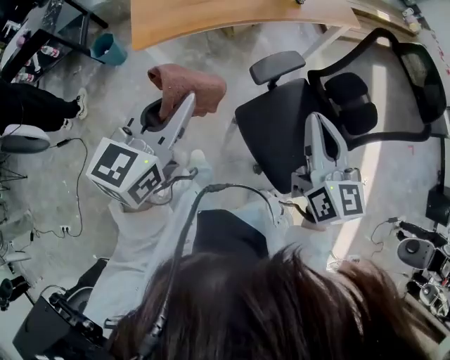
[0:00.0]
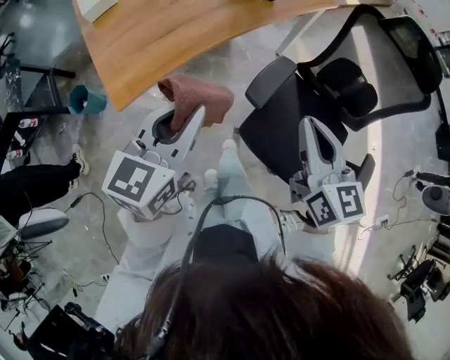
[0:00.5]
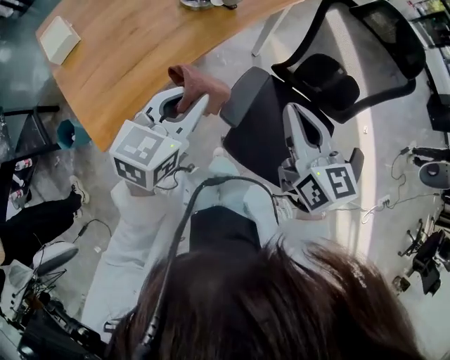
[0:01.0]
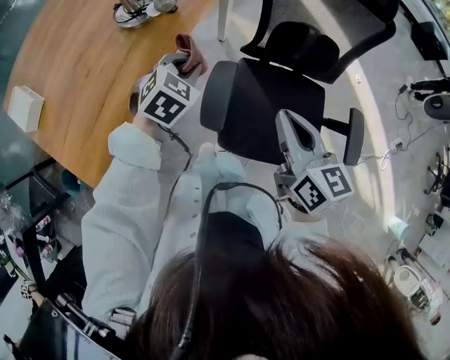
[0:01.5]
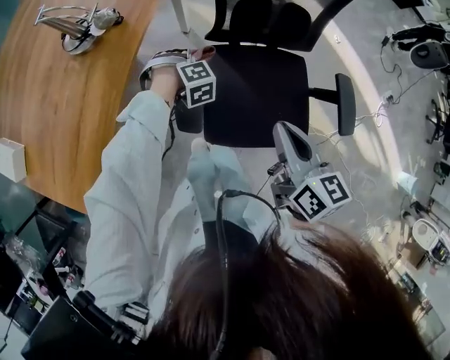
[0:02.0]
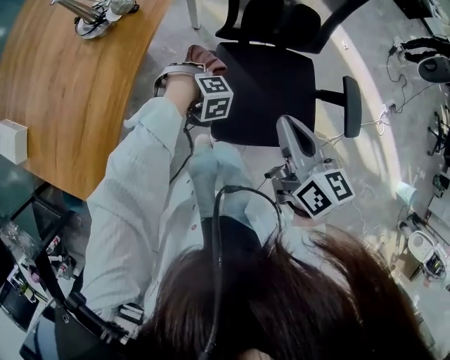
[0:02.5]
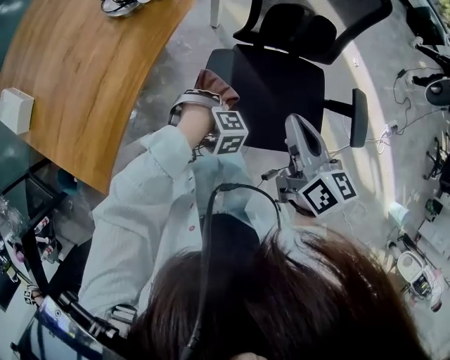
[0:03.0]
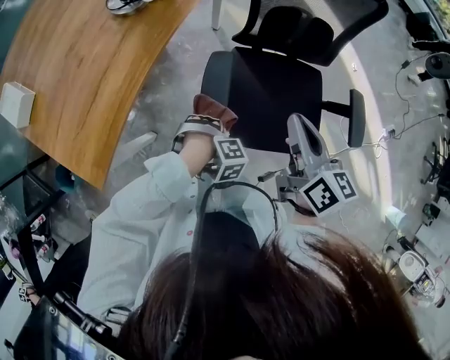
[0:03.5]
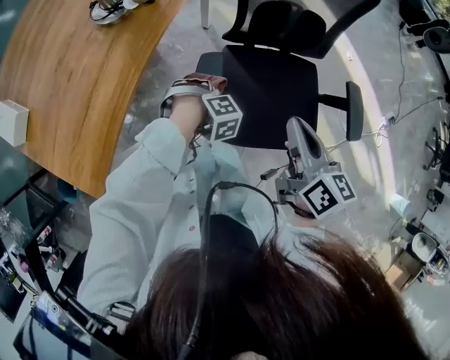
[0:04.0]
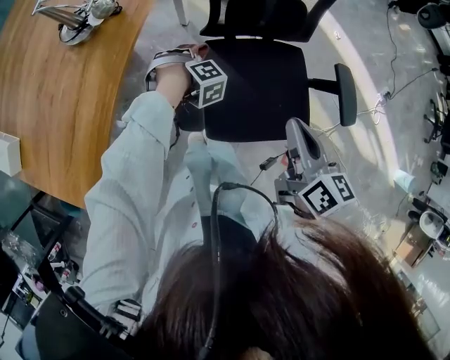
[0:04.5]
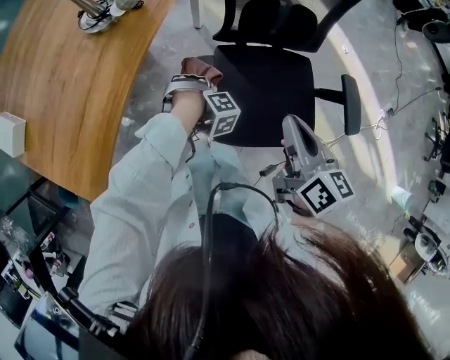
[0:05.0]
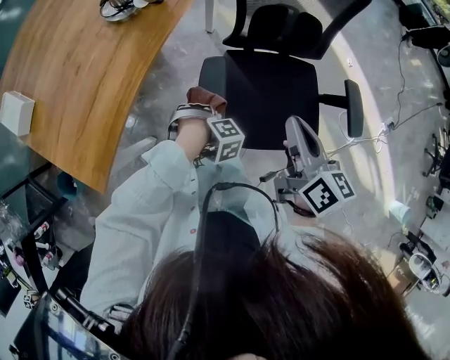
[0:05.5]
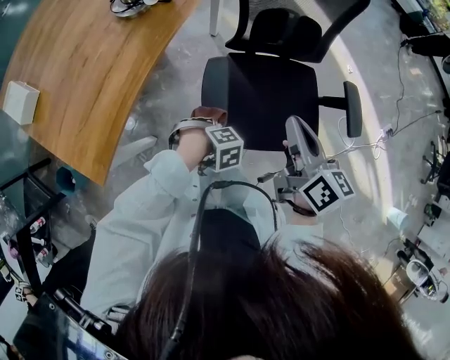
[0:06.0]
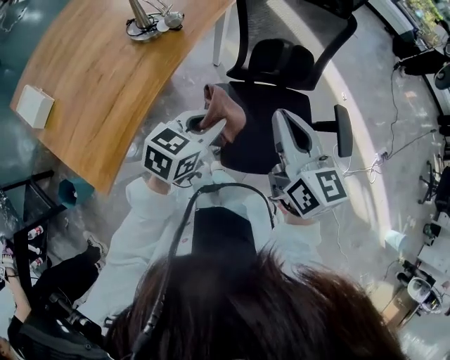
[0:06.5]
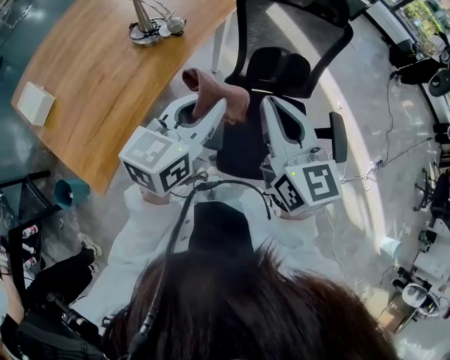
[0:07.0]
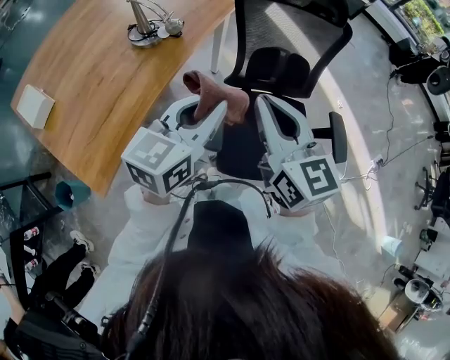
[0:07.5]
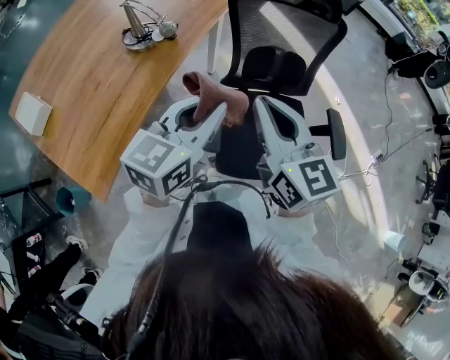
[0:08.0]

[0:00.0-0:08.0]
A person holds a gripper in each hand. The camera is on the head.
0:00.0 to 0:02.0: The right gripper moves roughly 20 cm, and swivels approximately 50 degrees; the left gripper moves some 60 cm, and rotates around the line of its fingers by about 100 degrees, clockwise from behind.
0:04.0 to 0:06.0: The left gripper ends up roughly 15 cm from where it was.
0:06.0 to 0:08.0: The left gripper moves upward, roughly 35 cm, and tips its fingers upward by about 70 degrees. Meanwhile the right gripper travels upward by roughly 15 cm, and turns by roughly 30 degrees.

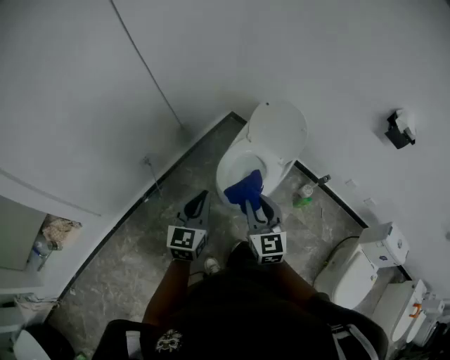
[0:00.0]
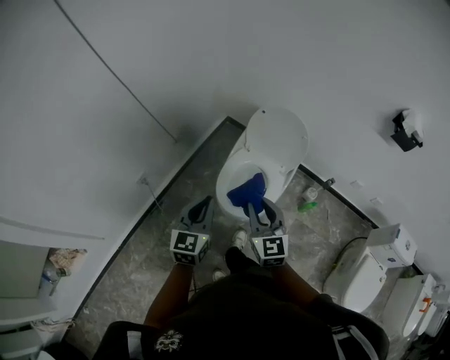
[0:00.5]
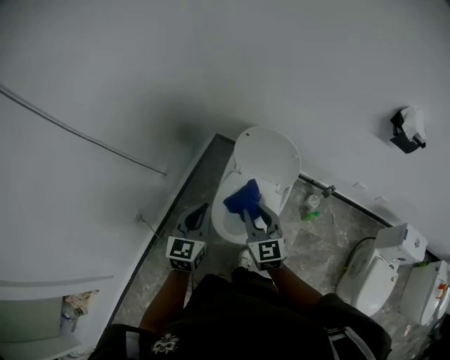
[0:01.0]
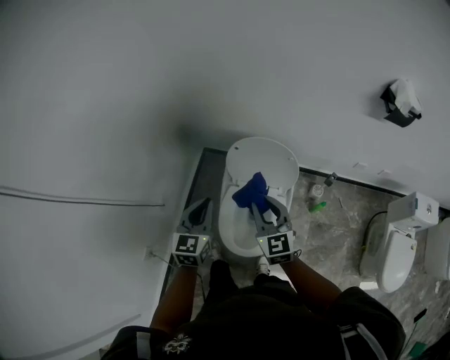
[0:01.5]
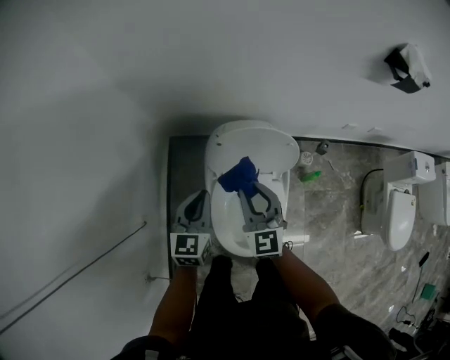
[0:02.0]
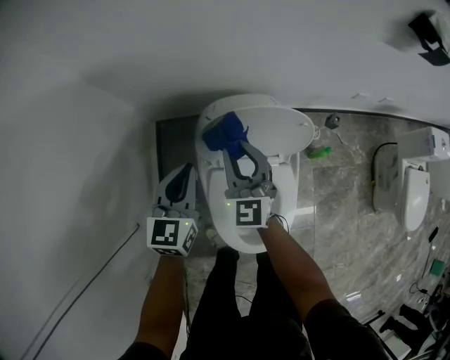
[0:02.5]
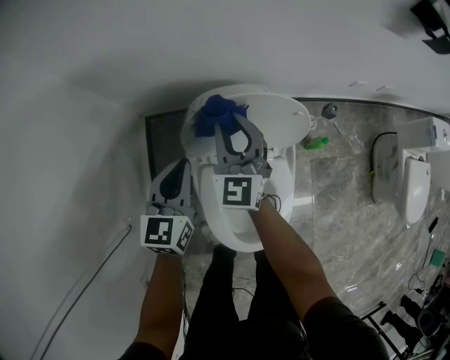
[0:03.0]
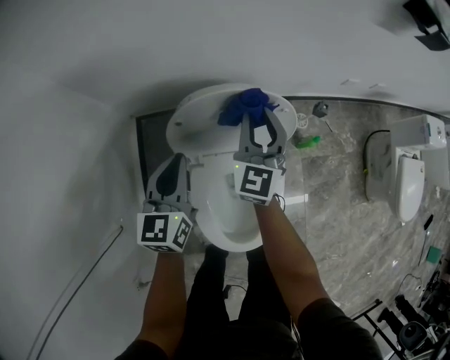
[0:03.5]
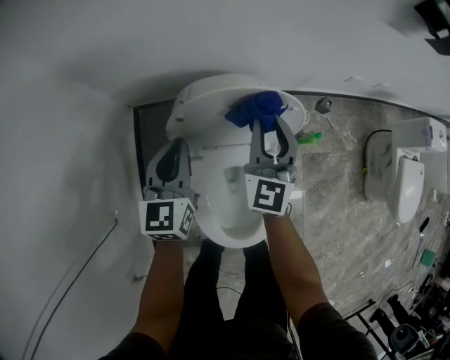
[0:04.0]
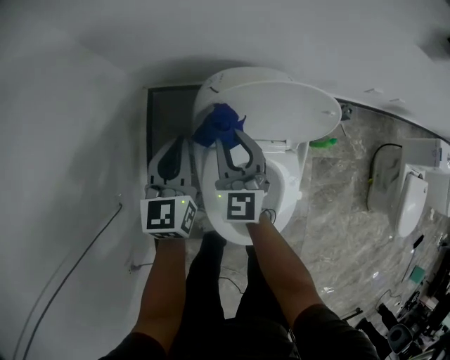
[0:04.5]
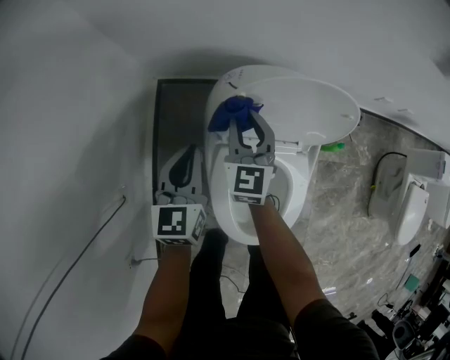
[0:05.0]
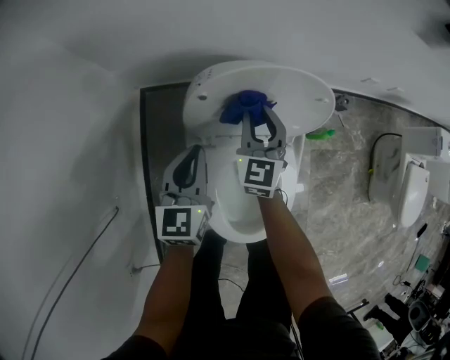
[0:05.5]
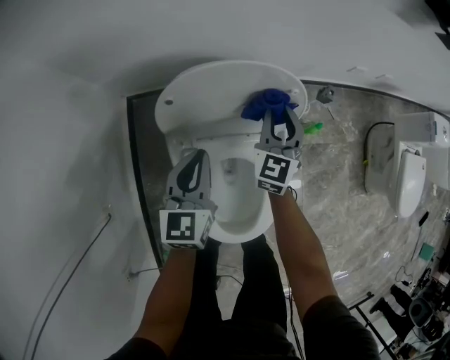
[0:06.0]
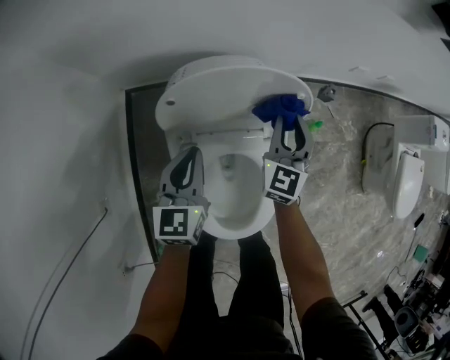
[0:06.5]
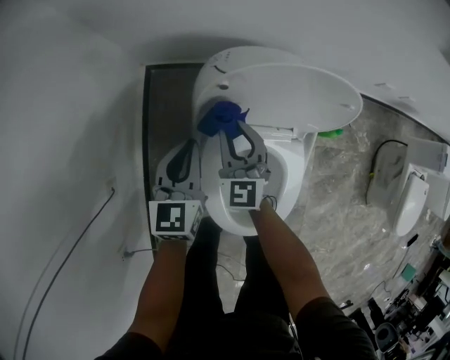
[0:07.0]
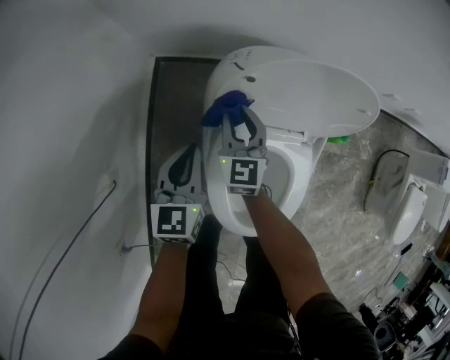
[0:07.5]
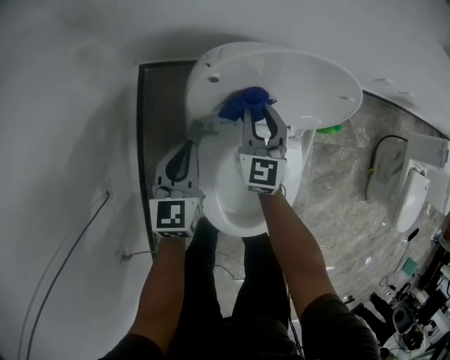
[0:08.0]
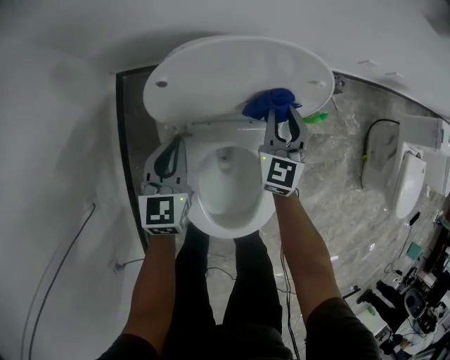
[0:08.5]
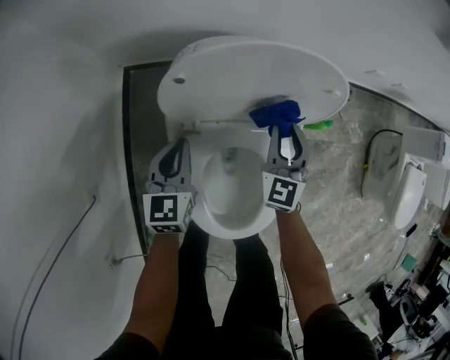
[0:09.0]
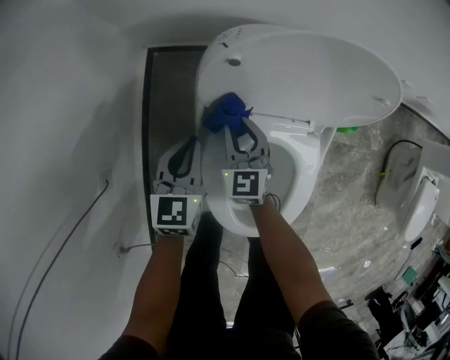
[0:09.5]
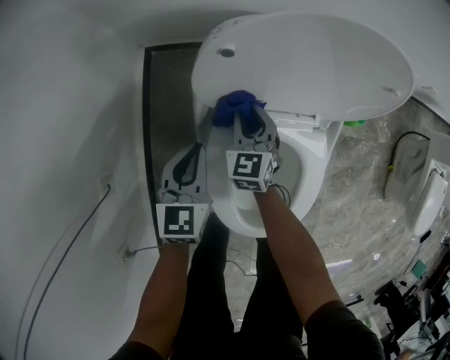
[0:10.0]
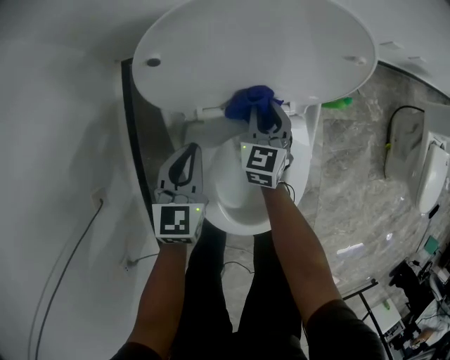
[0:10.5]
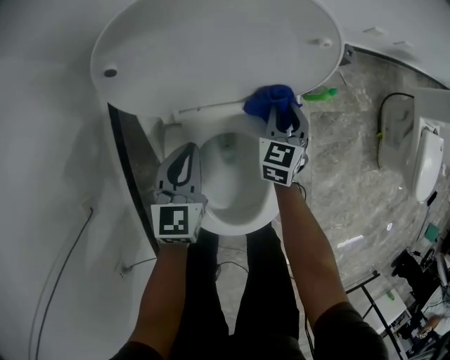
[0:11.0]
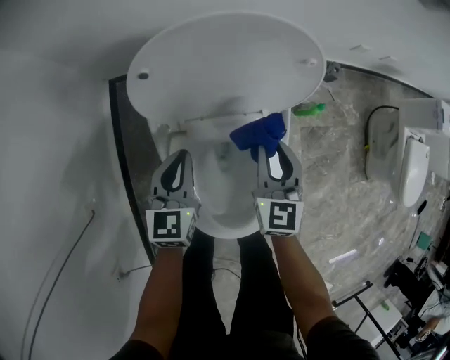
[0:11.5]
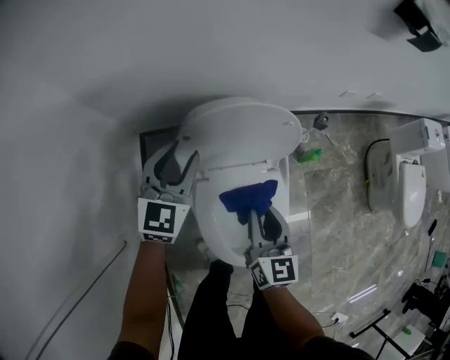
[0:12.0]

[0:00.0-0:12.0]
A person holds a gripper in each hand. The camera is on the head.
0:00.0 to 0:02.0: Both grippers are carried about 40 cm. The right gripper rotates roughly 30 degrees. The left gripper turns by some 30 degrees.
0:02.0 to 0:04.0: The right gripper travels forward, to the right and downward by some 20 cm, and changes its angle by about 30 degrees. Meanwhile the left gripper shifts about 15 cm forward and downward.
0:04.0 to 0:06.0: The left gripper goes about 5 cm to the right; the right gripper shifts approximately 10 cm downward, and goes to the left and returns, about 15 cm each way.
0:06.0 to 0:08.0: The grippers both shift to the left and downward by roughly 15 cm.
0:08.0 to 0:10.0: The left gripper is displaced downward by some 5 cm, while the right gripper moves downward, about 10 cm, and moves approximately 15 cm to the right and comes back.
0:10.0 to 0:12.0: The left gripper shifts some 25 cm upward and forward, rotates approximately 30 degrees, and opens up, while the right gripper goes some 30 cm upward, to the right and backward, and turns by approximately 40 degrees.

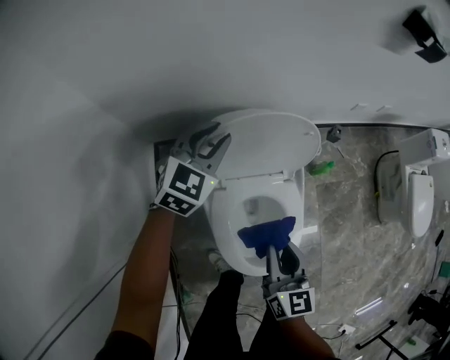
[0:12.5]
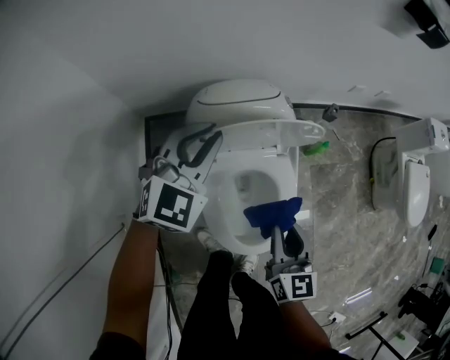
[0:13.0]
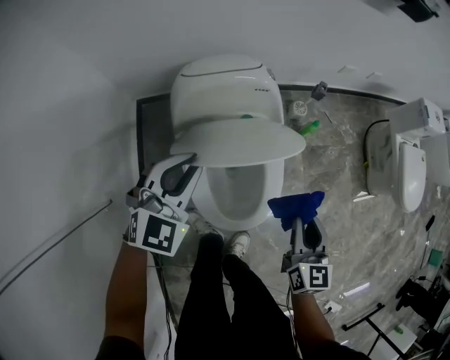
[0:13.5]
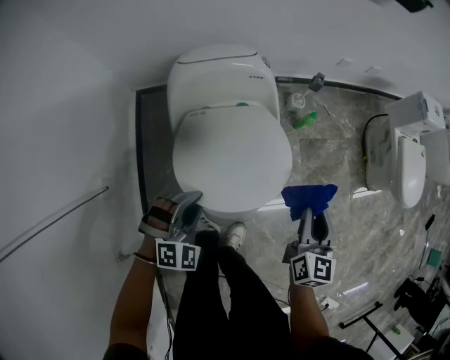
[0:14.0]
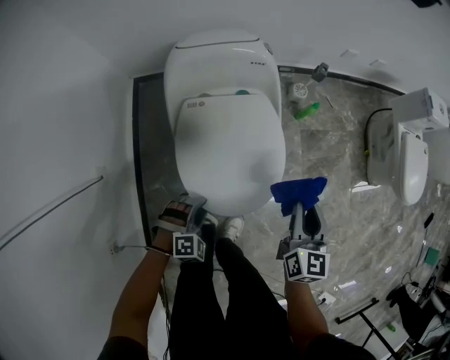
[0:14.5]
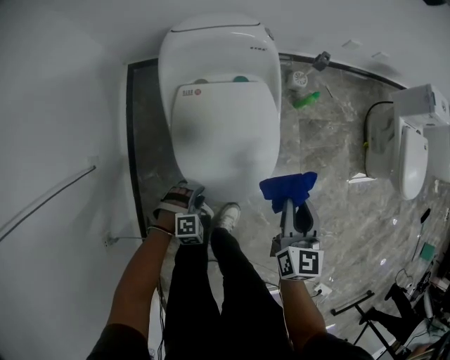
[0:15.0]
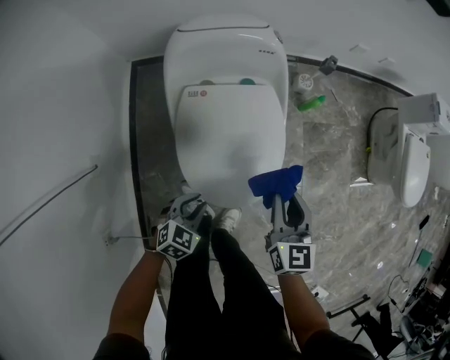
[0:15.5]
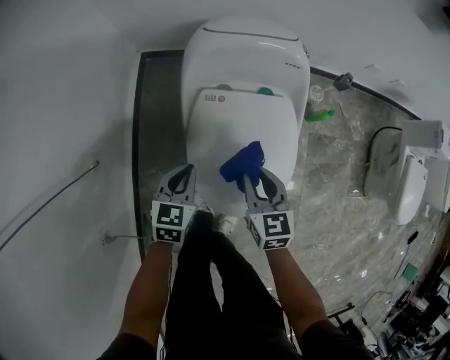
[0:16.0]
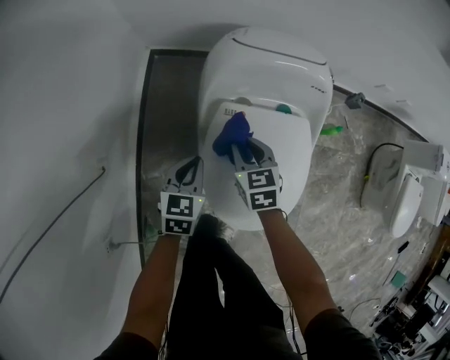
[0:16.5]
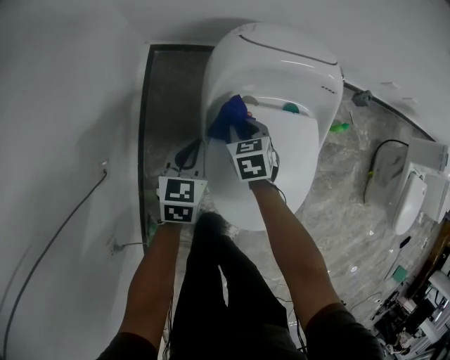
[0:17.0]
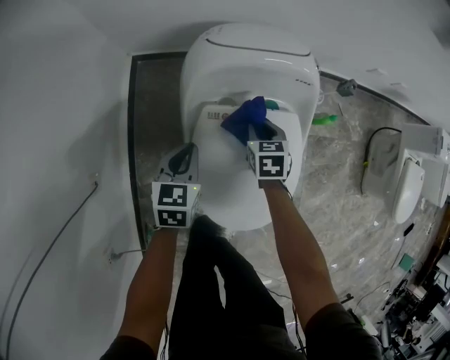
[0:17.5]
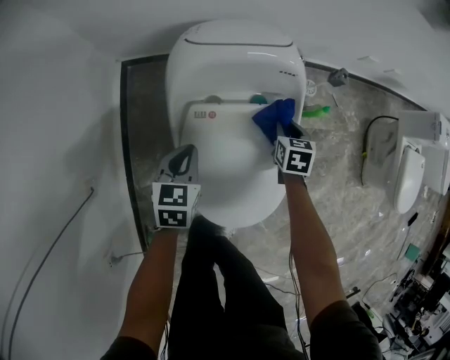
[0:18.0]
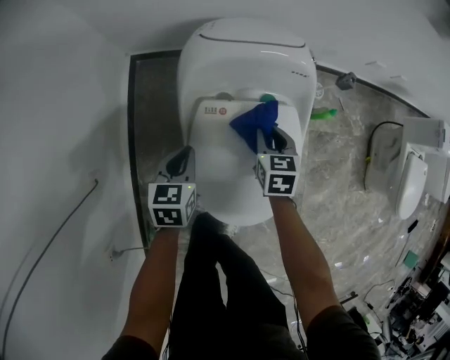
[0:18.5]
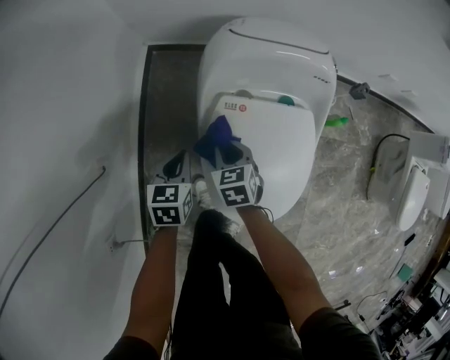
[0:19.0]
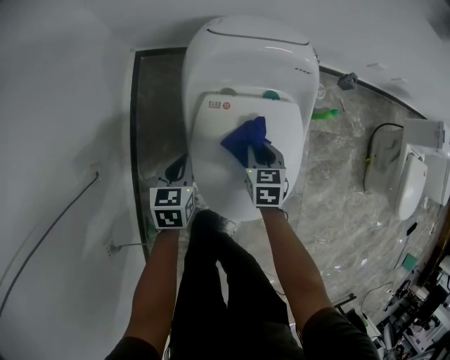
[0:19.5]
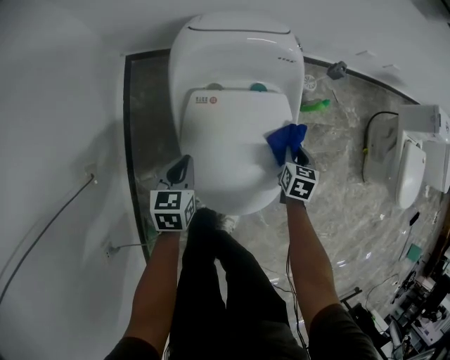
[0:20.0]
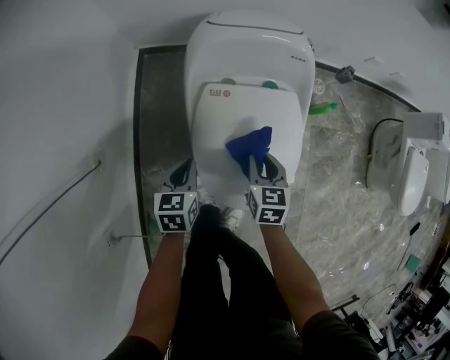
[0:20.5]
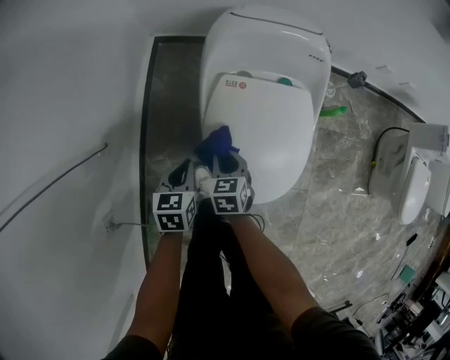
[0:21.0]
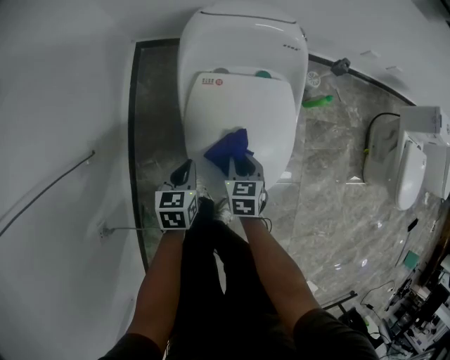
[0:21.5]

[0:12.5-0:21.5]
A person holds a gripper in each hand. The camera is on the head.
0:12.5 to 0:14.5: The right gripper travels to the right by roughly 20 cm; the left gripper is displaced backward and downward by some 50 cm, and tilts its fingers roughly 30 degrees downward.
0:14.5 to 0:17.0: The left gripper travels downward and back again, about 10 cm each way, rotates around the line of its fingers by roughly 80 degrees, counterclockwise from behind, and closes, while the right gripper changes place by roughly 50 cm, and tips its fingers downward by about 30 degrees.
0:17.0 to 0:19.5: The right gripper moves left and right over some 25 cm, changing direction 2 times. The left gripper swings left and right, some 10 cm each way, with 2 reversals.
0:19.5 to 0:21.5: The right gripper moves left and right over roughly 30 cm, changing direction 2 times; the left gripper is displaced backward by approximately 10 cm.
